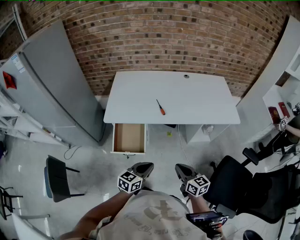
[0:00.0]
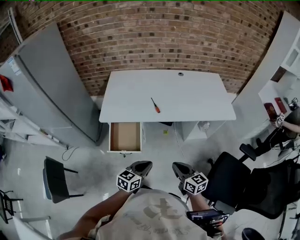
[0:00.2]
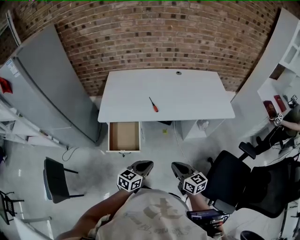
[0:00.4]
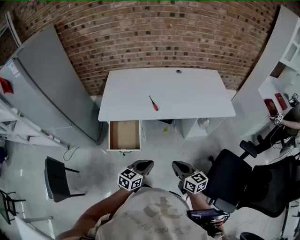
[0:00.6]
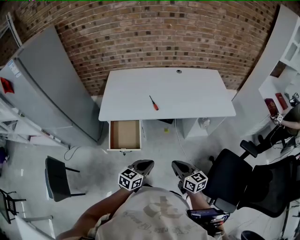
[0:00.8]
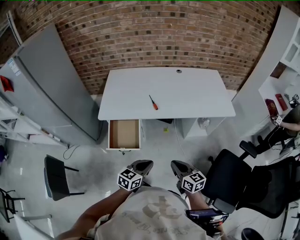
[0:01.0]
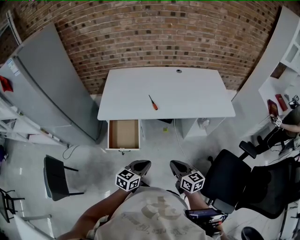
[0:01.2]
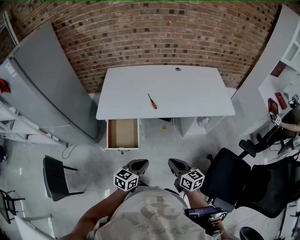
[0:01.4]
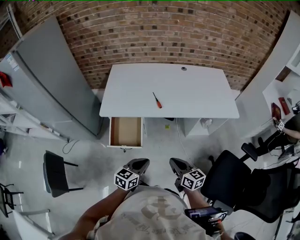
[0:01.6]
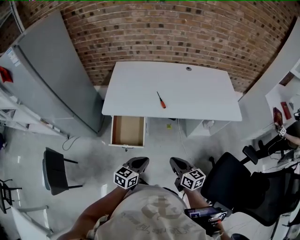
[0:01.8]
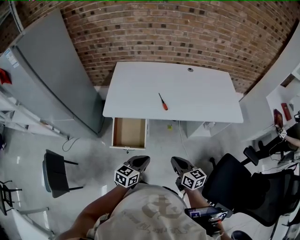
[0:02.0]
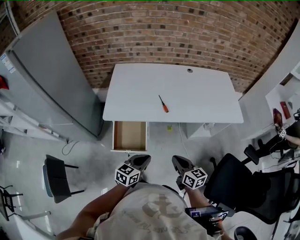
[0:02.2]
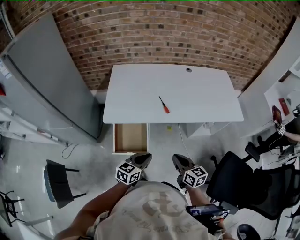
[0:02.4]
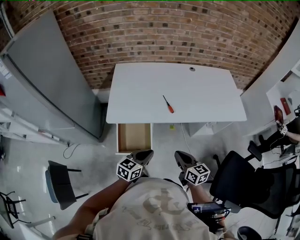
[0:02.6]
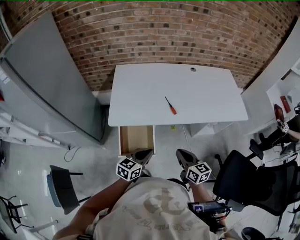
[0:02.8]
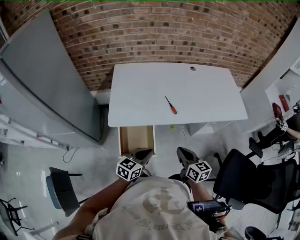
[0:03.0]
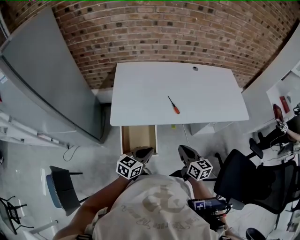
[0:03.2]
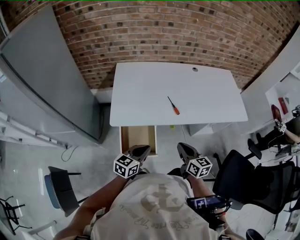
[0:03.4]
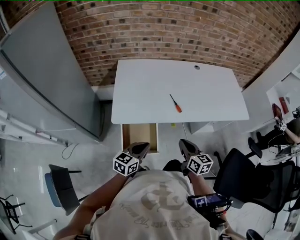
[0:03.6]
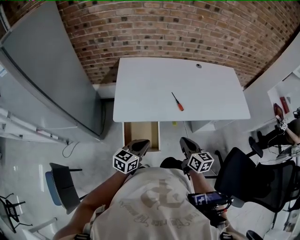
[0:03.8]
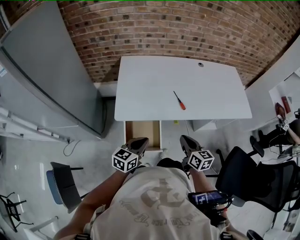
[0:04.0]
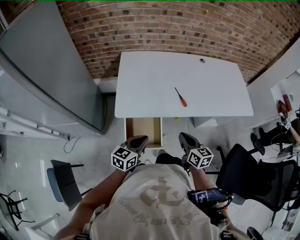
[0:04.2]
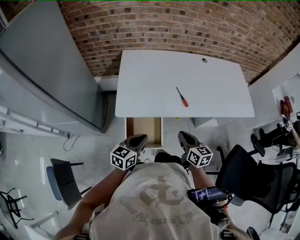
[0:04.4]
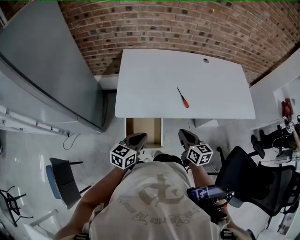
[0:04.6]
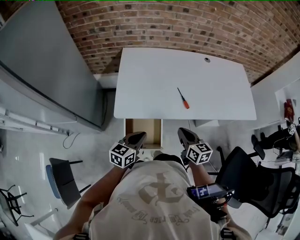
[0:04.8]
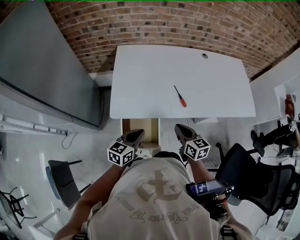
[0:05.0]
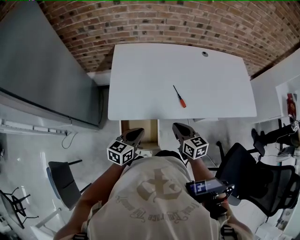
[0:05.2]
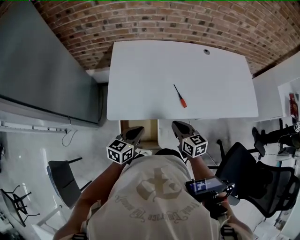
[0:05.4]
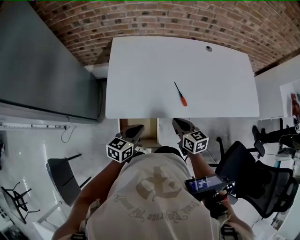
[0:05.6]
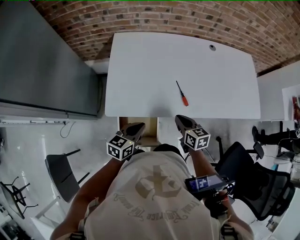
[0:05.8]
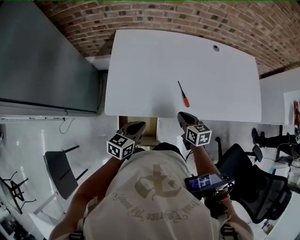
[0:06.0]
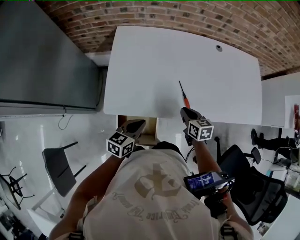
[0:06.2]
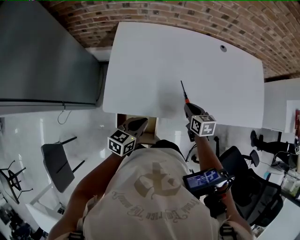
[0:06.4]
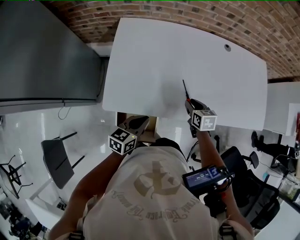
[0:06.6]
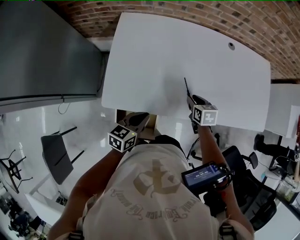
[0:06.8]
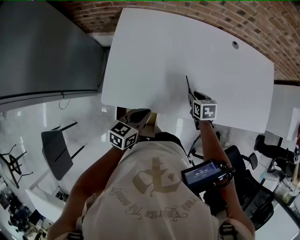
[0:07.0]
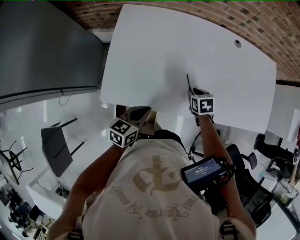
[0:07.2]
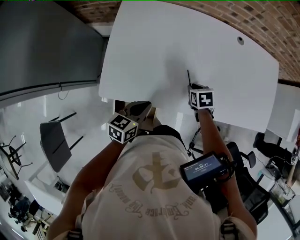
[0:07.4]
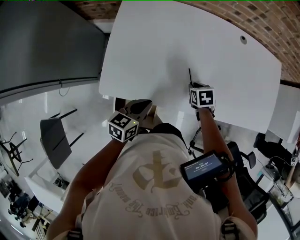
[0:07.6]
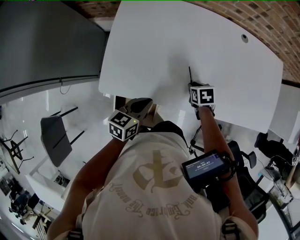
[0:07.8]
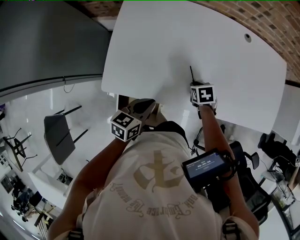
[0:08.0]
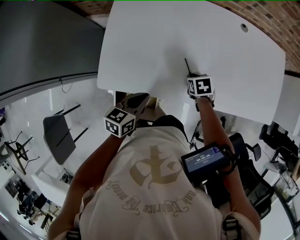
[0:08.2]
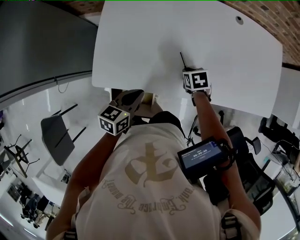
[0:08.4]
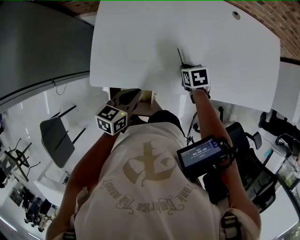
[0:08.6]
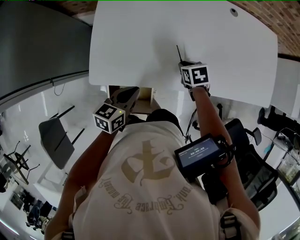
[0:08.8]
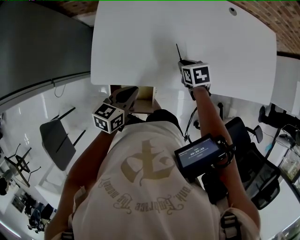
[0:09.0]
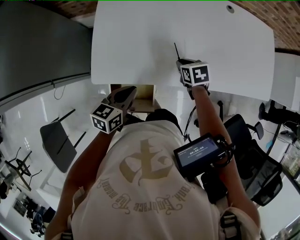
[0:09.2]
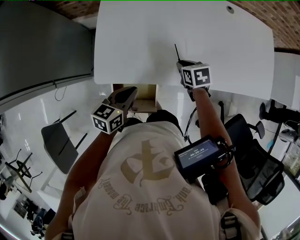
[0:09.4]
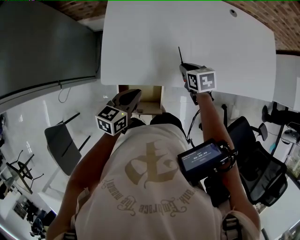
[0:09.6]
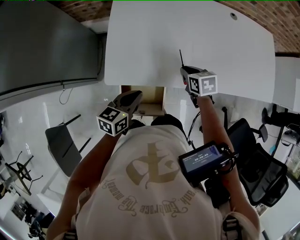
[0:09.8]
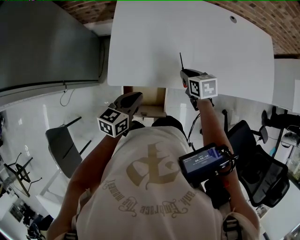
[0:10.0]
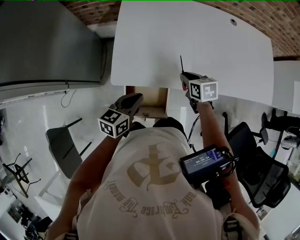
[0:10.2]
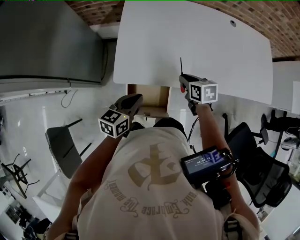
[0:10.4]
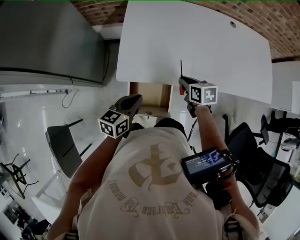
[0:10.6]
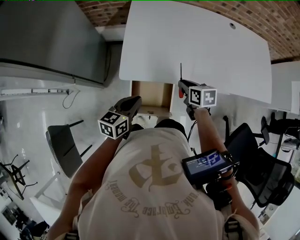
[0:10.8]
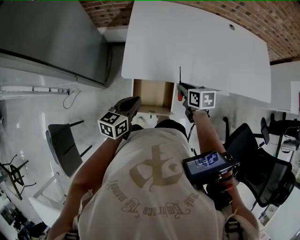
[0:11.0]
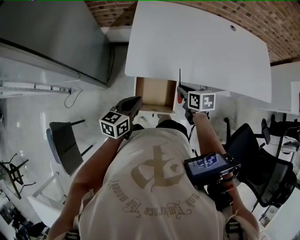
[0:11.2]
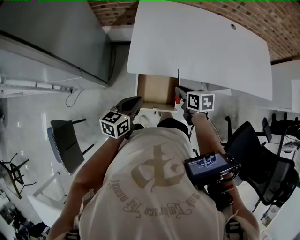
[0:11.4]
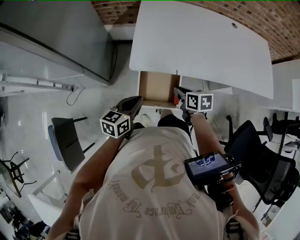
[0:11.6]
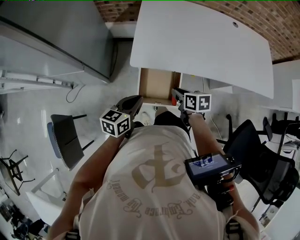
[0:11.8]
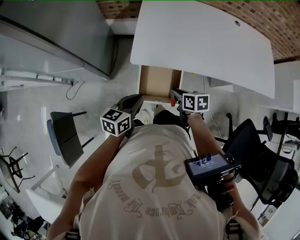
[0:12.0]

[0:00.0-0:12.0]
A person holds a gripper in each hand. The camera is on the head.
0:00.0 to 0:01.6: The grippers stay close to where they were, moving slightly.
0:01.6 to 0:03.0: The right gripper travels forward and to the left by about 15 cm, while the left gripper heads to the left and forward, covering some 20 cm.
0:03.0 to 0:04.4: The right gripper moves to the left and forward, some 10 cm, while the left gripper travels to the left by some 10 cm.
0:04.4 to 0:06.0: The right gripper heads forward and downward, covering about 20 cm. Meanwhile the left gripper heads forward, covering about 15 cm.
0:06.0 to 0:07.6: The left gripper heads forward, covering some 10 cm; the right gripper is displaced forward and downward by some 15 cm, and tips its fingers downward by some 30 degrees.
0:07.6 to 0:09.0: The grippers move only a little.
0:09.0 to 0:10.4: The left gripper is displaced to the left and backward by approximately 10 cm. Meanwhile the right gripper goes some 15 cm to the left, backward and upward.
0:10.4 to 0:12.0: Both grippers travel together backward and to the left, approximately 15 cm.

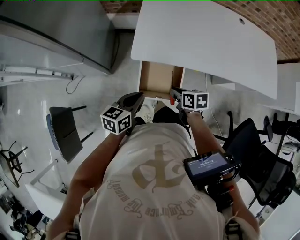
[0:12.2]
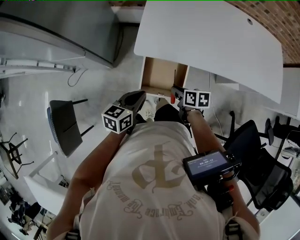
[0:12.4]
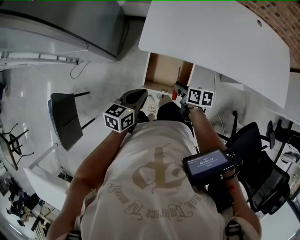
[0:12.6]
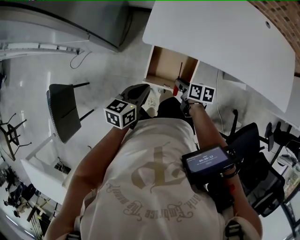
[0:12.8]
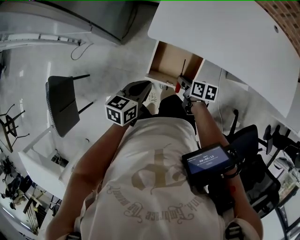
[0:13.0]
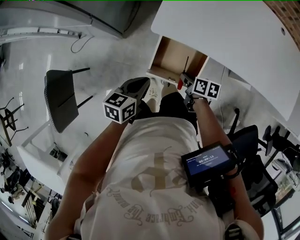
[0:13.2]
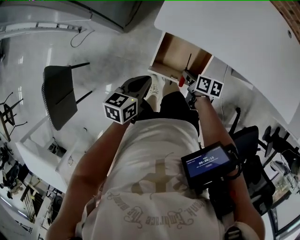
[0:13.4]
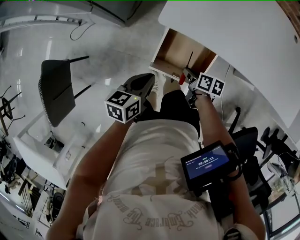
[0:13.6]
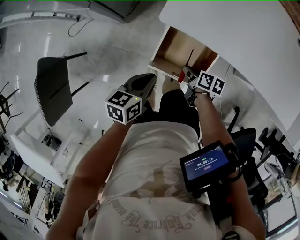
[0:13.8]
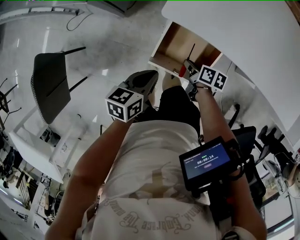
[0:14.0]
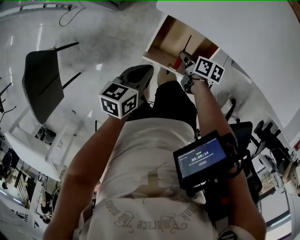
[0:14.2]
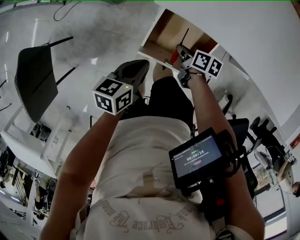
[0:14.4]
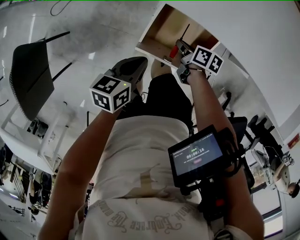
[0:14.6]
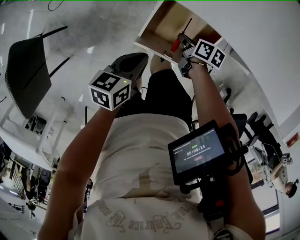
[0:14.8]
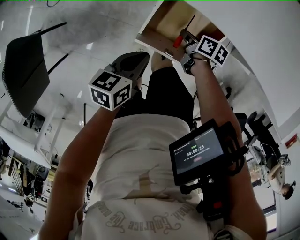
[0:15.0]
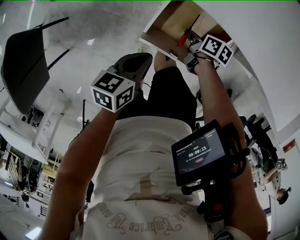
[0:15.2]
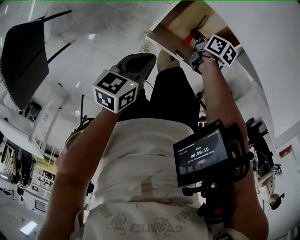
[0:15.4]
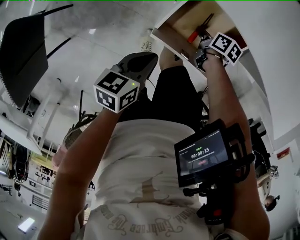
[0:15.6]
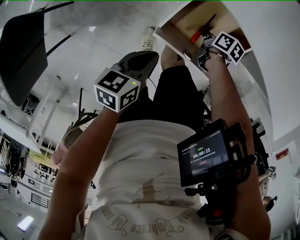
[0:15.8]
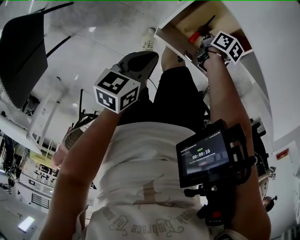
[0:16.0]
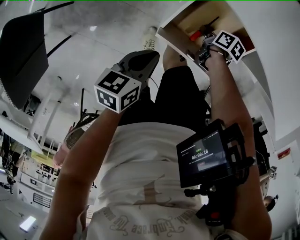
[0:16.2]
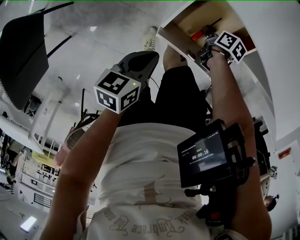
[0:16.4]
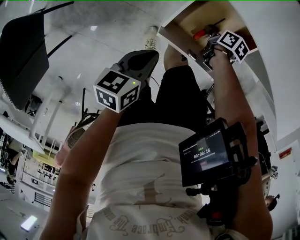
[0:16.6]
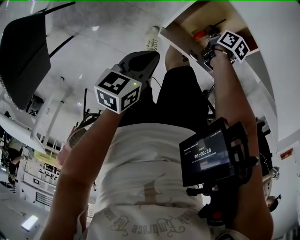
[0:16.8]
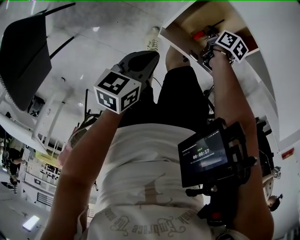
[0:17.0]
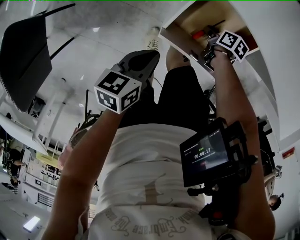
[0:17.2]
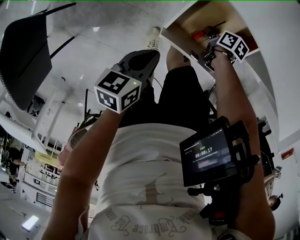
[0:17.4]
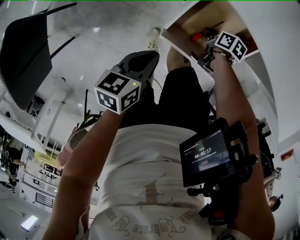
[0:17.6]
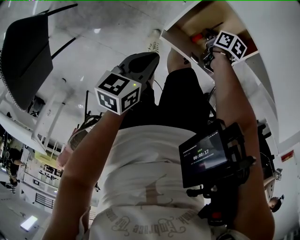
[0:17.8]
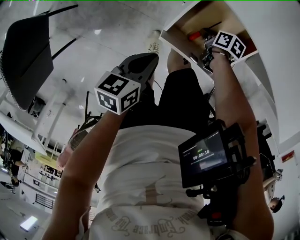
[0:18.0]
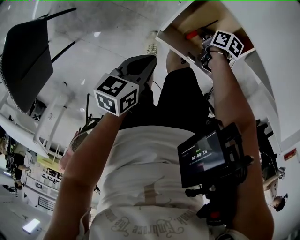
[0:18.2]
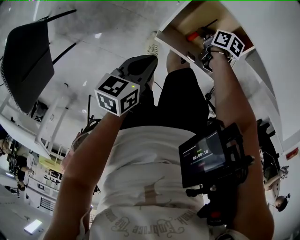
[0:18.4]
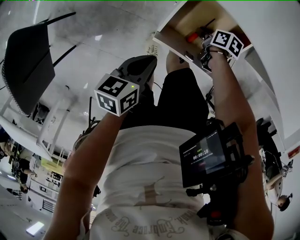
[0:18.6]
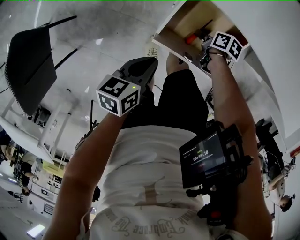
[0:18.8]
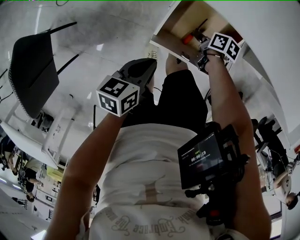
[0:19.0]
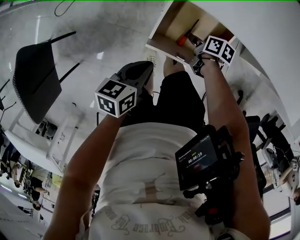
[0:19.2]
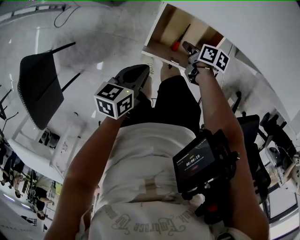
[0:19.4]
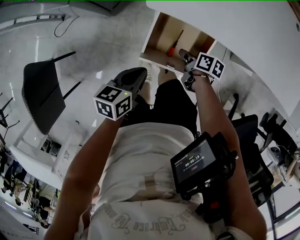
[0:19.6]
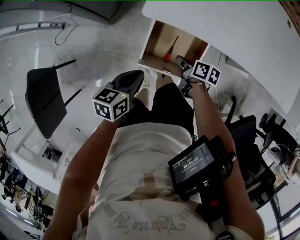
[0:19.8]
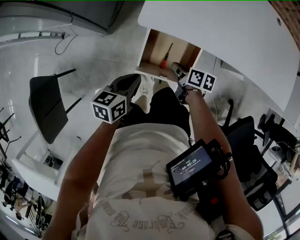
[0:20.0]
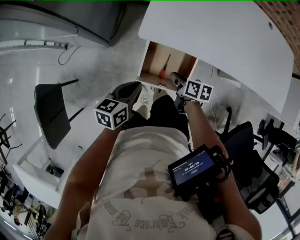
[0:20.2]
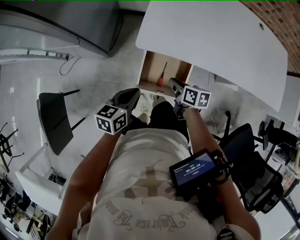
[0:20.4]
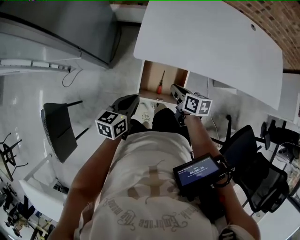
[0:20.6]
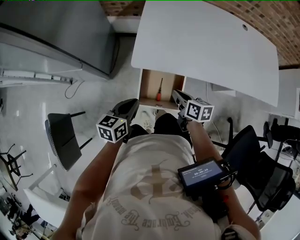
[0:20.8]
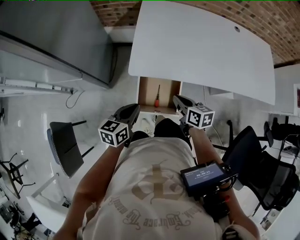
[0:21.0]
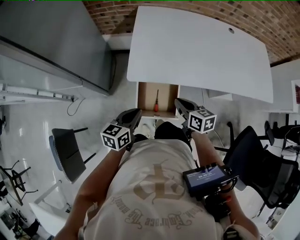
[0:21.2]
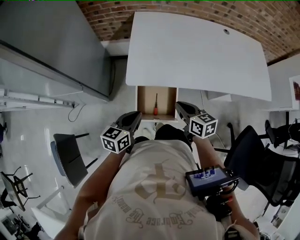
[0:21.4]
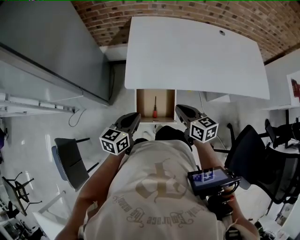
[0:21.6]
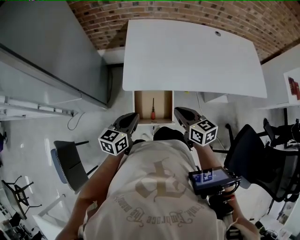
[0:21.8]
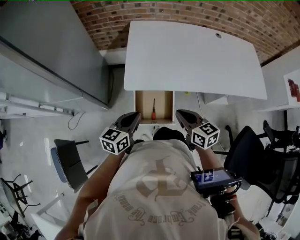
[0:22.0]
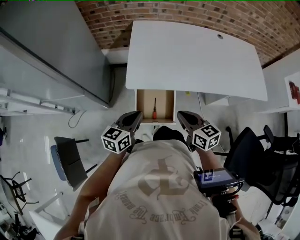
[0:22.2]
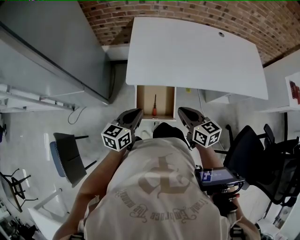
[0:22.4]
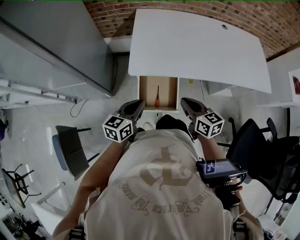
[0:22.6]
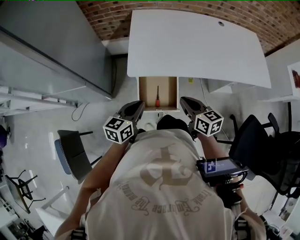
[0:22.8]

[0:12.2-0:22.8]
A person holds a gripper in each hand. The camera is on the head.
0:12.2 to 0:13.8: Both grippers travel together downward, approximately 15 cm. The left gripper swivels about 20 degrees.
0:13.8 to 0:15.2: The two grippers go roughly 10 cm downward.
0:15.2 to 0:16.8: The right gripper moves approximately 5 cm.
0:16.8 to 0:18.2: There are only small adjustments of the grippers.
0:18.2 to 0:19.8: The left gripper shifts roughly 5 cm upward, while the right gripper moves upward, about 15 cm, and changes its angle by some 20 degrees.
0:19.8 to 0:21.2: The right gripper moves upward, approximately 25 cm, and turns by some 40 degrees; the left gripper goes about 15 cm upward.
0:21.2 to 0:22.8: The right gripper is displaced backward and upward by roughly 10 cm.

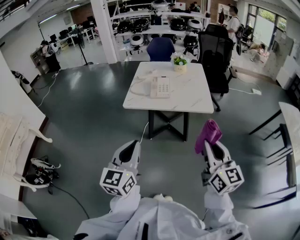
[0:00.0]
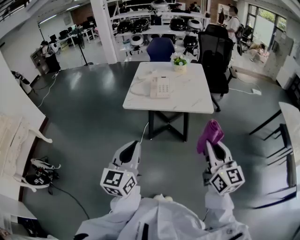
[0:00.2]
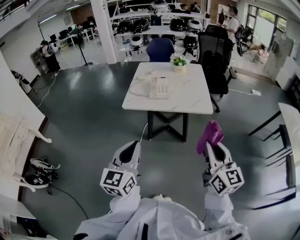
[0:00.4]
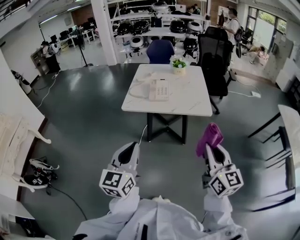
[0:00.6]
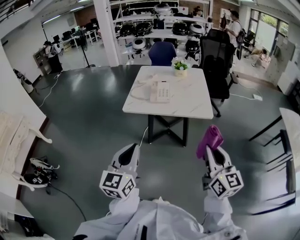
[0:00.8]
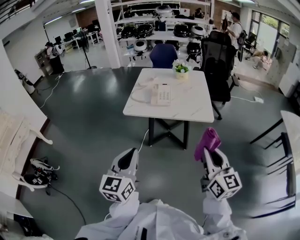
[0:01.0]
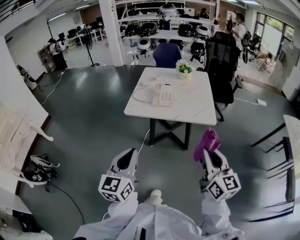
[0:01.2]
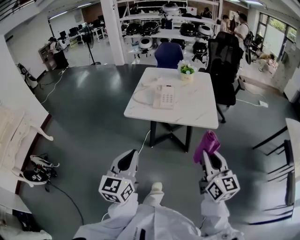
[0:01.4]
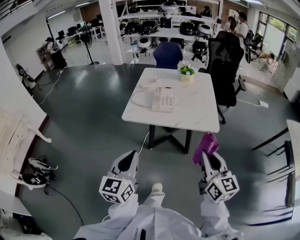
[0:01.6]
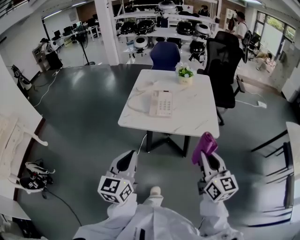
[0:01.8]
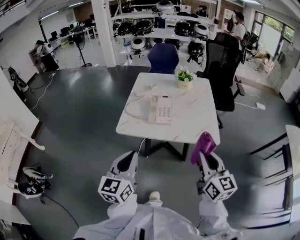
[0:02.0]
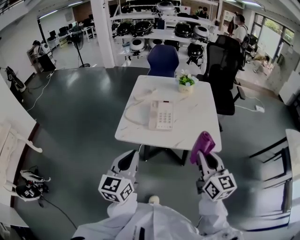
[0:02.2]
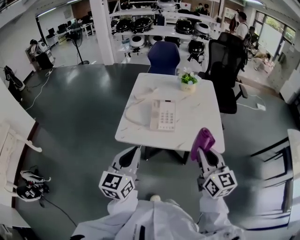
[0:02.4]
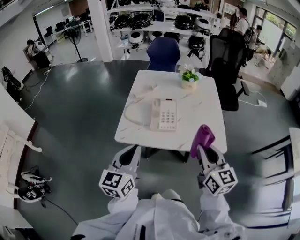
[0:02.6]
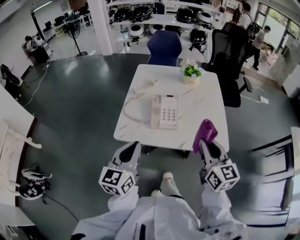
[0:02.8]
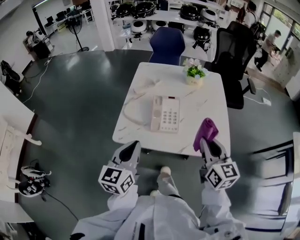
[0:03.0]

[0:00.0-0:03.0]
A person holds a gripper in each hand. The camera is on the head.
0:00.0 to 0:01.6: Both grippers move forward, about 10 cm.
0:01.6 to 0:03.0: Both grippers move forward, about 30 cm.
